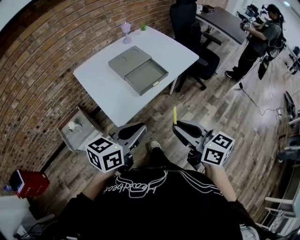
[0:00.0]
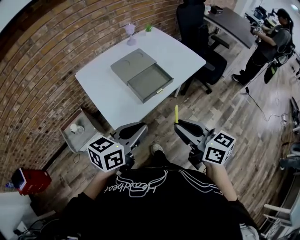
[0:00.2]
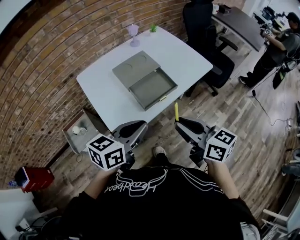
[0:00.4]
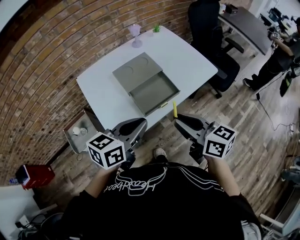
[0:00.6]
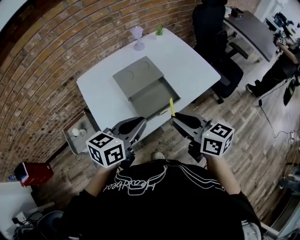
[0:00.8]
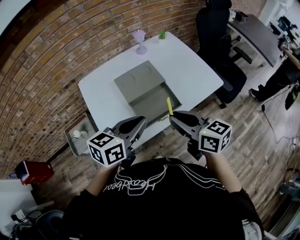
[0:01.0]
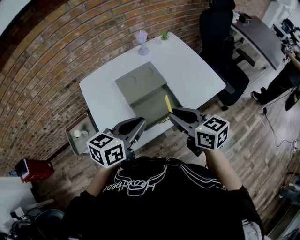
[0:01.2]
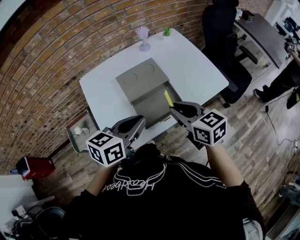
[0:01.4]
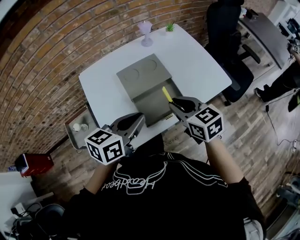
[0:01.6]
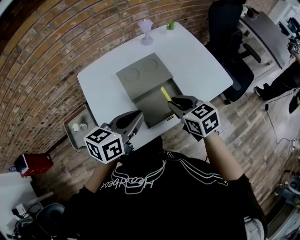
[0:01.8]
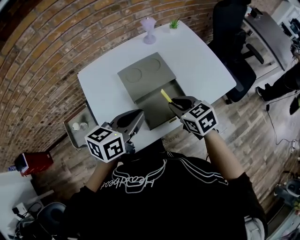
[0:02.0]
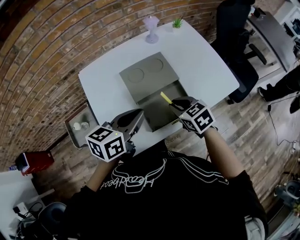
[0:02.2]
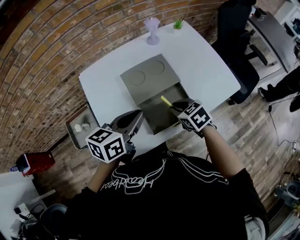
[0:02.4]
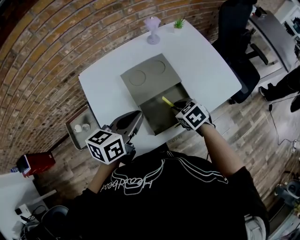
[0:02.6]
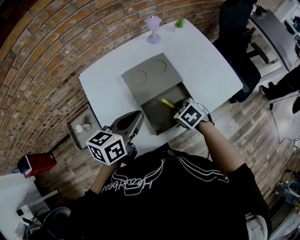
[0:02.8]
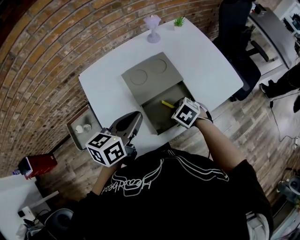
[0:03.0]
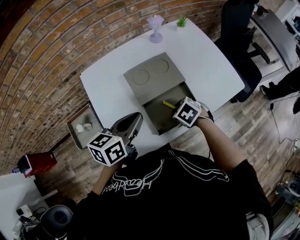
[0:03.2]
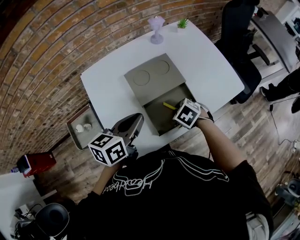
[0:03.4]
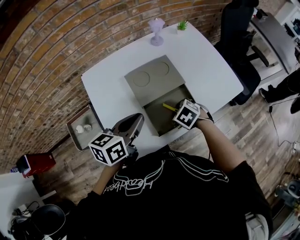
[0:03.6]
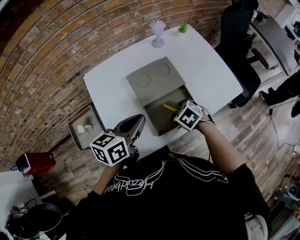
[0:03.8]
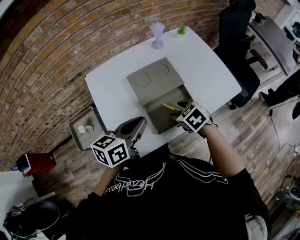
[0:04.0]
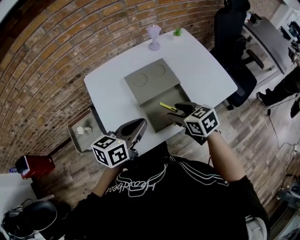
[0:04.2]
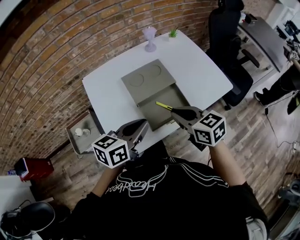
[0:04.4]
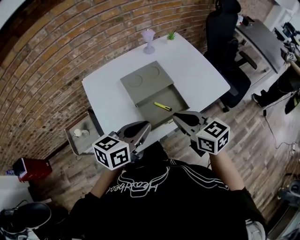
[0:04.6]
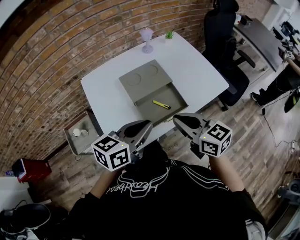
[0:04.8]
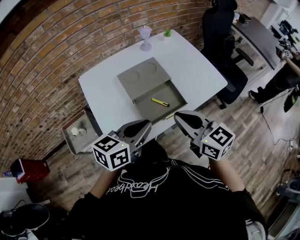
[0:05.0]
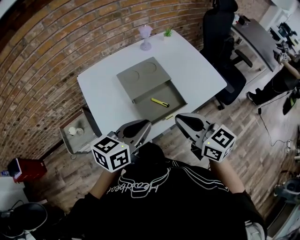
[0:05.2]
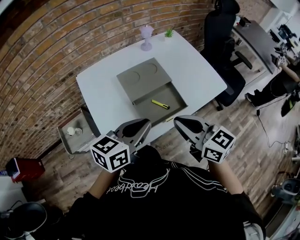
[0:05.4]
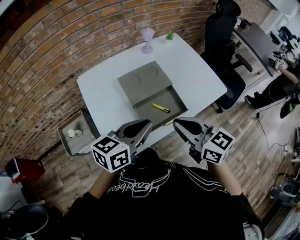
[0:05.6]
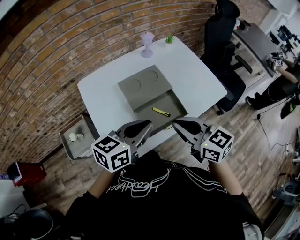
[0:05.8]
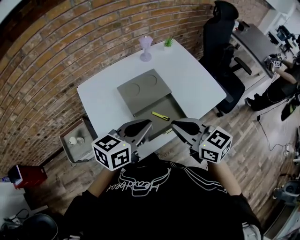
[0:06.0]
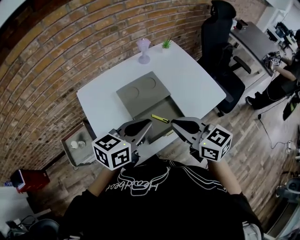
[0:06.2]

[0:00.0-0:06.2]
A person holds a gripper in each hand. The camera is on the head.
0:00.0 to 0:01.6: The two grippers go roughly 30 cm forward. The right gripper changes its angle by some 30 degrees.
0:01.6 to 0:03.2: The right gripper goes some 20 cm downward, and tips its fingers downward by roughly 40 degrees; the left gripper goes some 10 cm forward and to the left.
0:03.2 to 0:04.6: The left gripper travels backward and to the right by some 10 cm; the right gripper goes approximately 20 cm upward and backward, points its fingers some 50 degrees further upward, and opens and closes again.
0:04.6 to 0:06.2: The left gripper shifts roughly 5 cm forward.

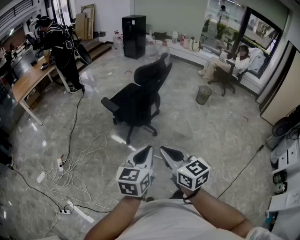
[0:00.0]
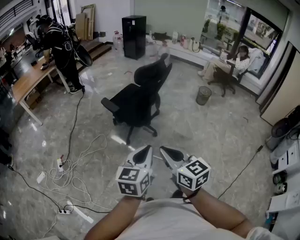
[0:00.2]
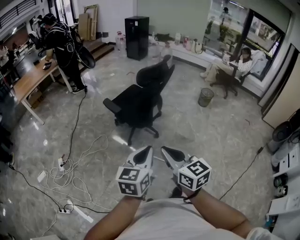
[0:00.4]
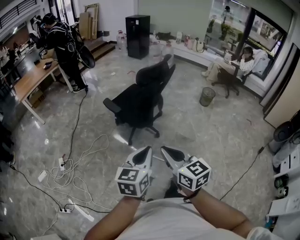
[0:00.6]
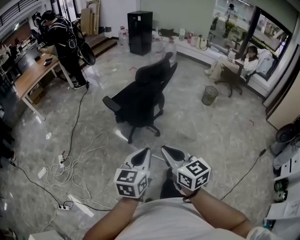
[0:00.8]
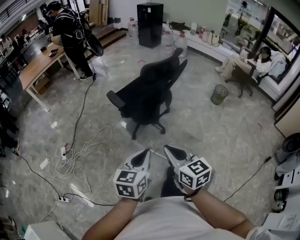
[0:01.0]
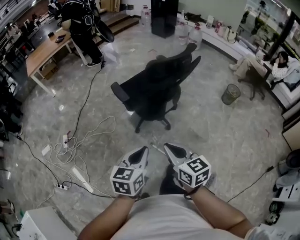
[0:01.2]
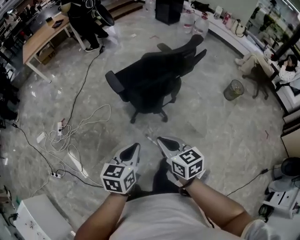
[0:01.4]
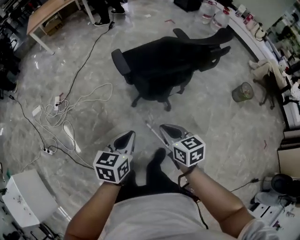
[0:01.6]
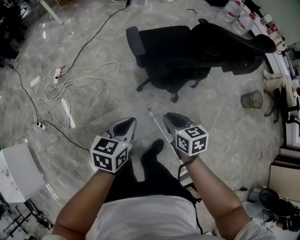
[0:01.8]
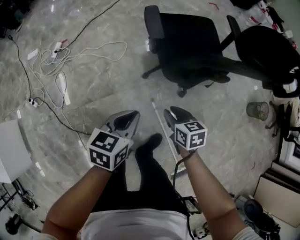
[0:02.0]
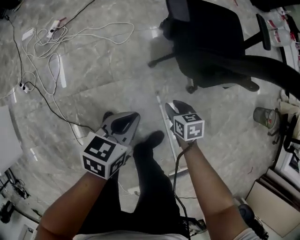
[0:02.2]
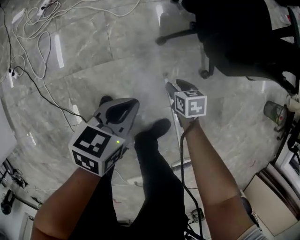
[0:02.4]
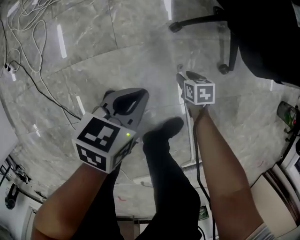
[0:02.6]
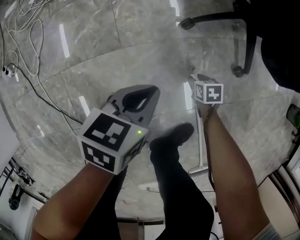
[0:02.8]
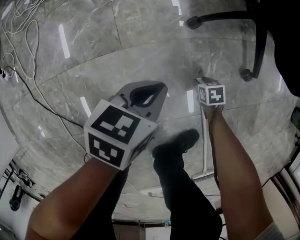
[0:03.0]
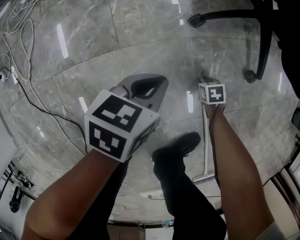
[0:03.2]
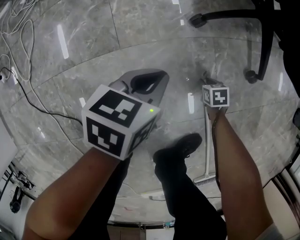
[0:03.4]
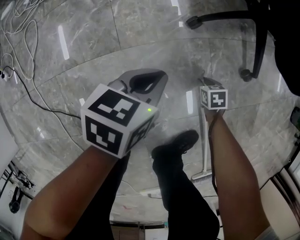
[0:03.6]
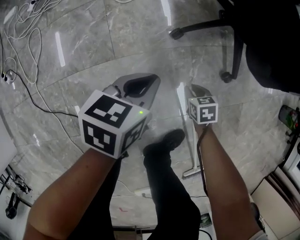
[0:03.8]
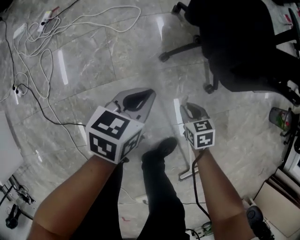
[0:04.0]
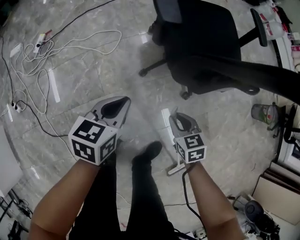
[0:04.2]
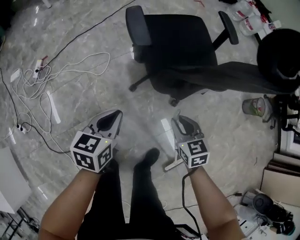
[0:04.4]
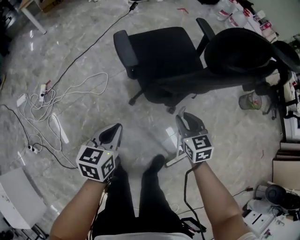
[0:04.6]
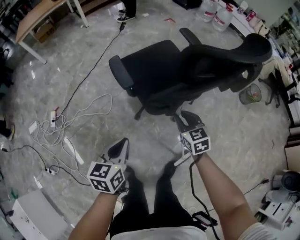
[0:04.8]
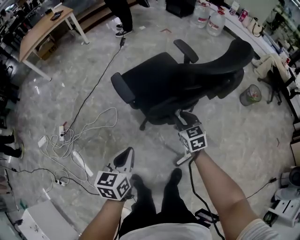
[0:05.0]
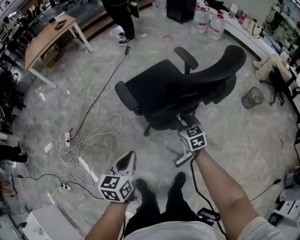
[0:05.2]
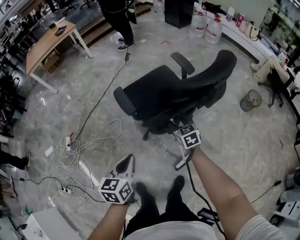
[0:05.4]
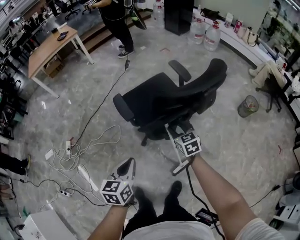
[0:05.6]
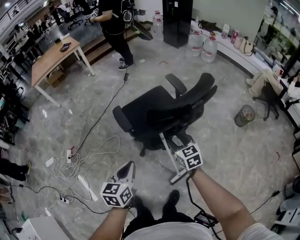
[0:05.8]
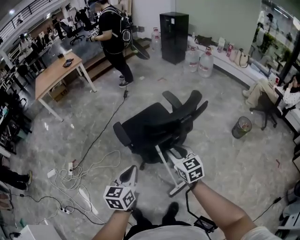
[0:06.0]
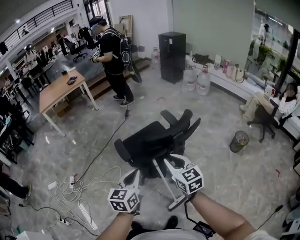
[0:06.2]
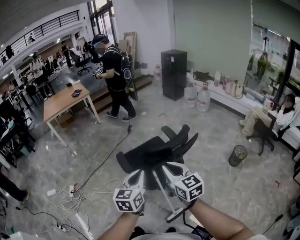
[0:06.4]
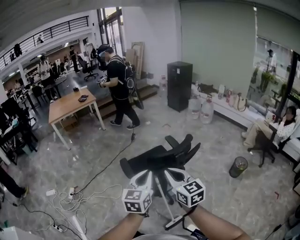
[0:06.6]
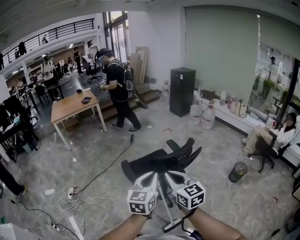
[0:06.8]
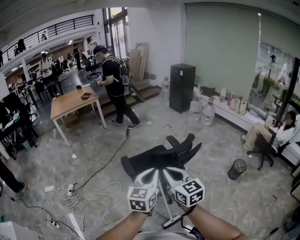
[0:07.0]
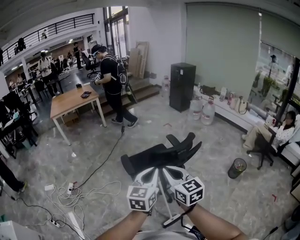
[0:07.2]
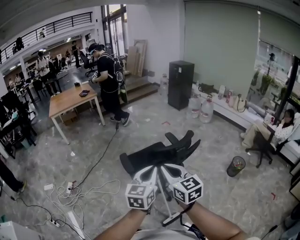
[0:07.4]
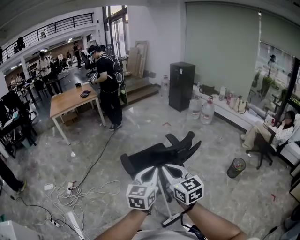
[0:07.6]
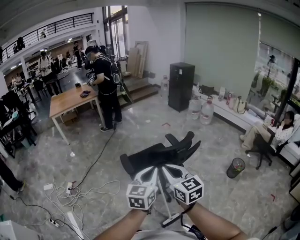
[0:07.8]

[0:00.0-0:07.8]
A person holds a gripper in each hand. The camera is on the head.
0:00.0 to 0:01.6: The grippers both shift forward and downward by about 40 cm. The left gripper changes its angle by approximately 30 degrees, while the right gripper changes its angle by roughly 30 degrees.
0:01.6 to 0:03.2: Both grippers move downward, approximately 90 cm. The right gripper tips its fingers downward by roughly 50 degrees, and opens up. Meanwhile the left gripper turns by roughly 20 degrees.
0:03.2 to 0:04.6: The grippers both shift upward by some 70 cm. The right gripper tilts its fingers approximately 40 degrees upward. Meanwhile the left gripper rotates some 20 degrees.
0:04.6 to 0:06.2: The right gripper moves upward, approximately 40 cm, turns by some 20 degrees, and opens, then closes once more, while the left gripper is displaced upward and to the right by roughly 40 cm, and changes its angle by some 20 degrees.
0:06.2 to 0:07.8: The left gripper shifts roughly 15 cm upward and to the right. The right gripper goes some 15 cm upward and backward.

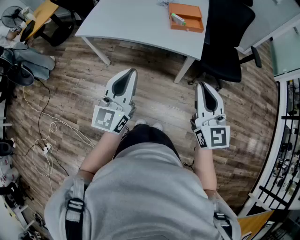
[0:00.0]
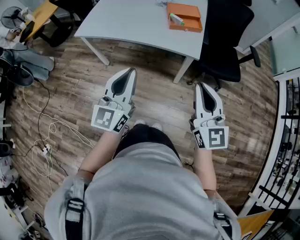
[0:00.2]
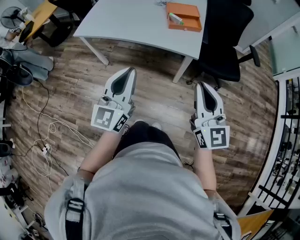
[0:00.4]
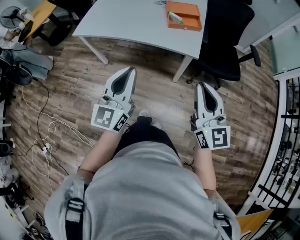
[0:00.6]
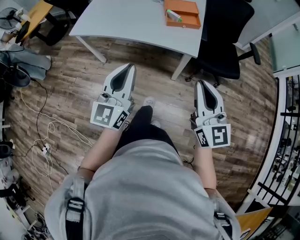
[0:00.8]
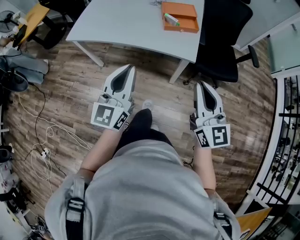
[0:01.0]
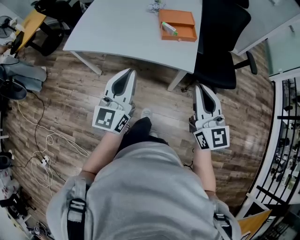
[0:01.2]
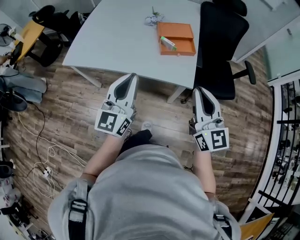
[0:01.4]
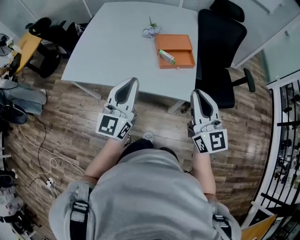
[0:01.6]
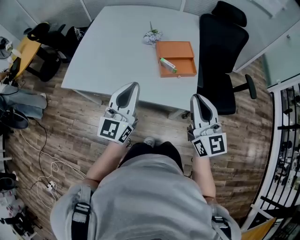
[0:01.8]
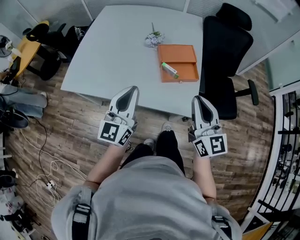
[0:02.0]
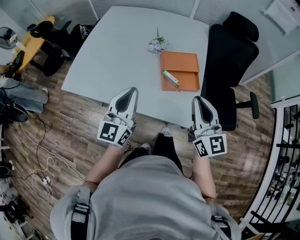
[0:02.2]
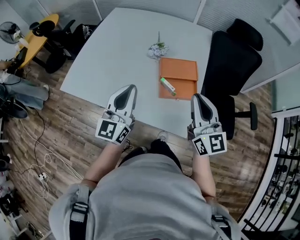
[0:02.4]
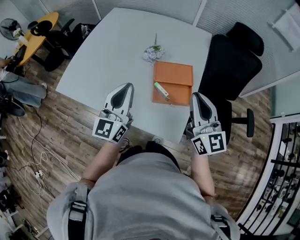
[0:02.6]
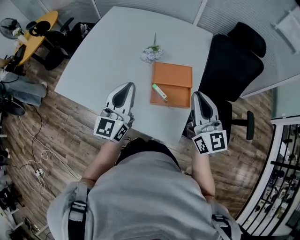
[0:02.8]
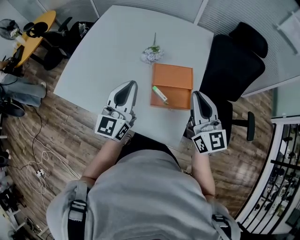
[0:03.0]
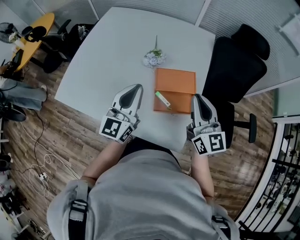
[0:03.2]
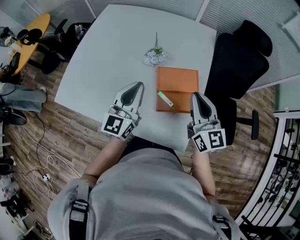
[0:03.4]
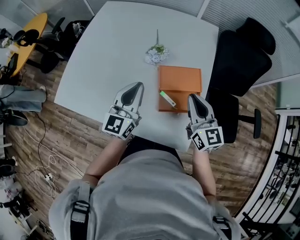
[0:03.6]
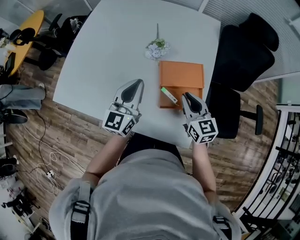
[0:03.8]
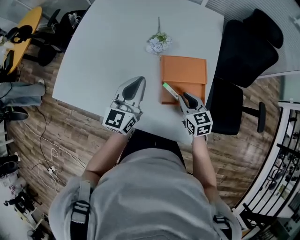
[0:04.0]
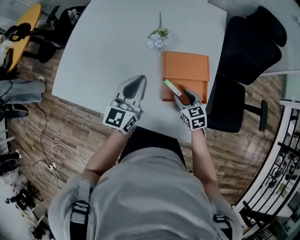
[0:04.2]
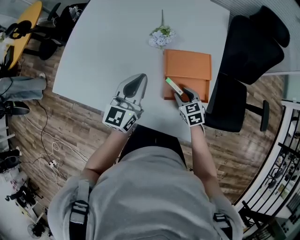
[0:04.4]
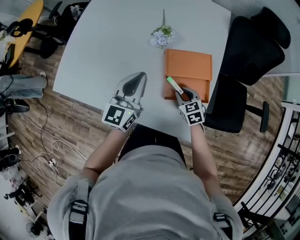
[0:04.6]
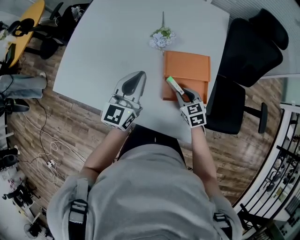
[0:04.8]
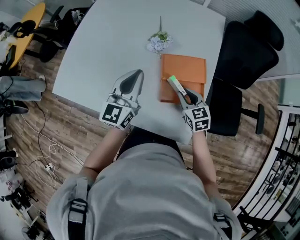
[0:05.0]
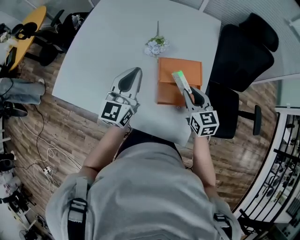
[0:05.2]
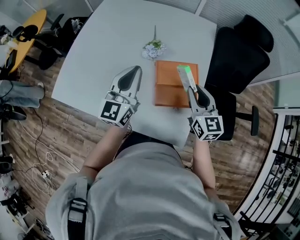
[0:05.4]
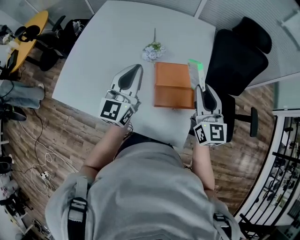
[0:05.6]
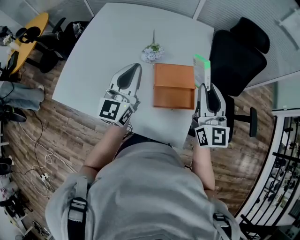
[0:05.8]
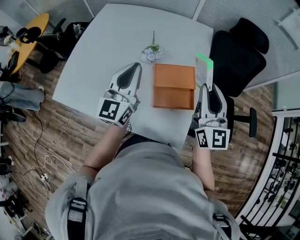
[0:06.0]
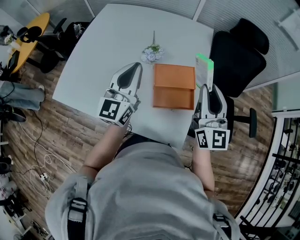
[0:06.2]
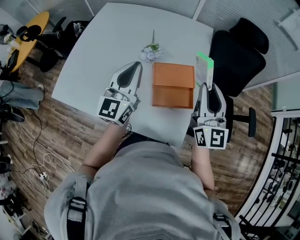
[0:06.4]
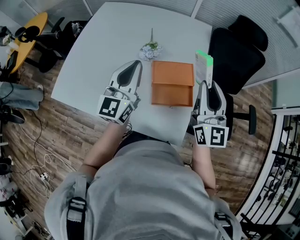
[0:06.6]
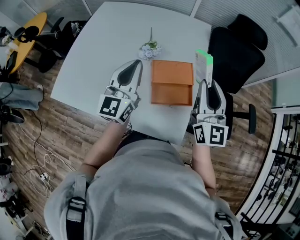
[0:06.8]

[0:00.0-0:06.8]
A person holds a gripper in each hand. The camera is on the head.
0:00.0 to 0:01.4: The grippers both shift forward by some 20 cm.
0:01.4 to 0:02.8: The two grippers go some 35 cm forward.
0:02.8 to 0:04.0: The left gripper is displaced forward and downward by some 15 cm; the right gripper shifts about 25 cm downward, and tilts its fingers approximately 40 degrees downward.
0:04.0 to 0:05.4: The right gripper travels upward by roughly 15 cm, and changes its angle by some 20 degrees. Meanwhile the left gripper is displaced upward by roughly 10 cm.
0:05.4 to 0:06.8: The right gripper shifts some 10 cm upward, and swivels some 30 degrees.

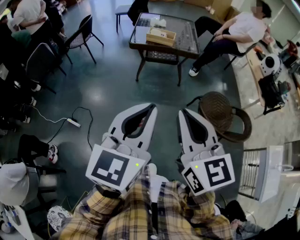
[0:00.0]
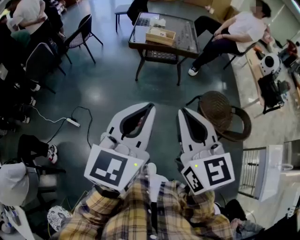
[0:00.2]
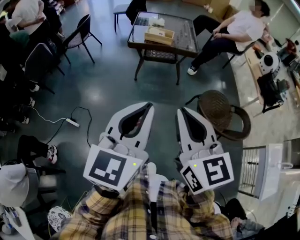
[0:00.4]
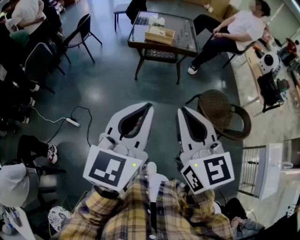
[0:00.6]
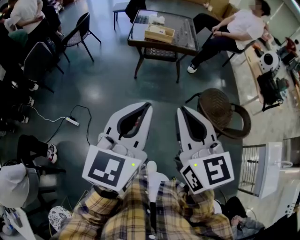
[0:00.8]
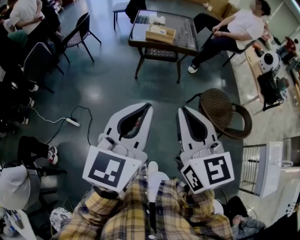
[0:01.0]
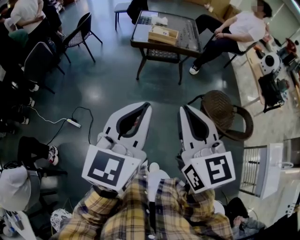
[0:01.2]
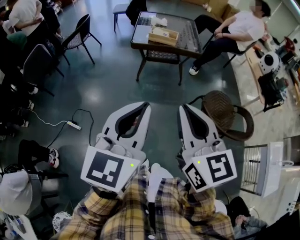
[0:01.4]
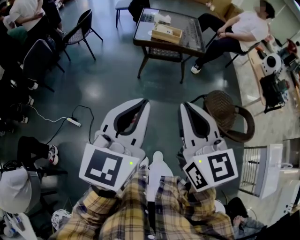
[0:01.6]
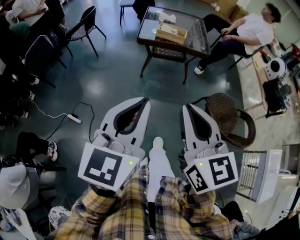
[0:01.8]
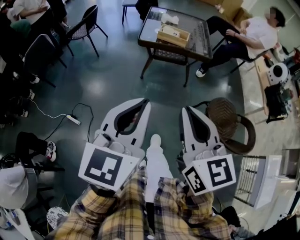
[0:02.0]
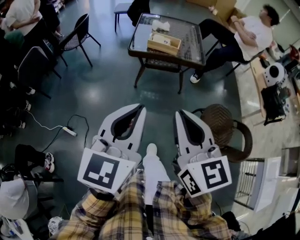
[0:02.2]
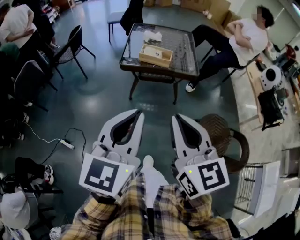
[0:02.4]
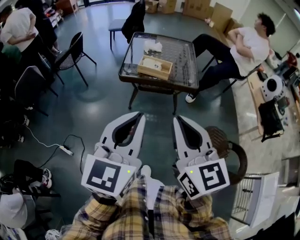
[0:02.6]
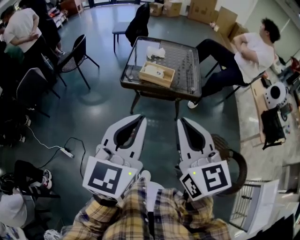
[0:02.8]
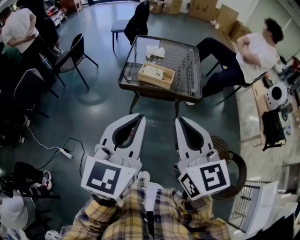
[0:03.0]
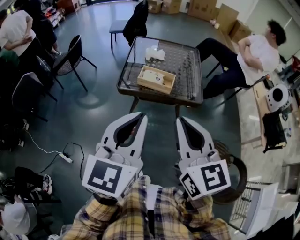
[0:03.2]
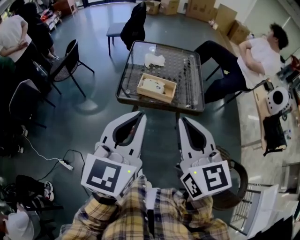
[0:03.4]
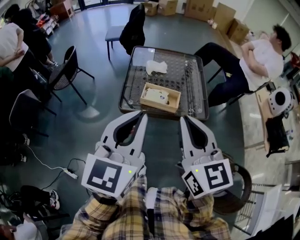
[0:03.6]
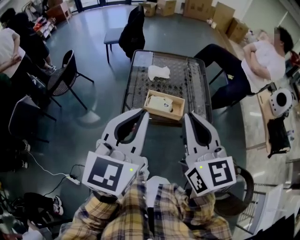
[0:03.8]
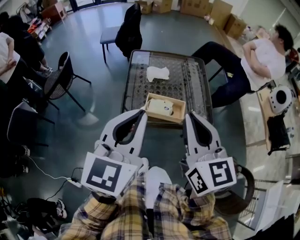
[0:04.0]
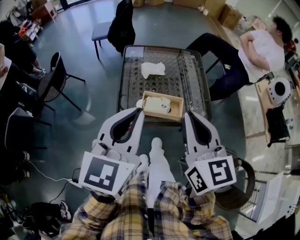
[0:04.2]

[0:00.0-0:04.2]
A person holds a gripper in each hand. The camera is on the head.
0:00.0 to 0:01.4: The two grippers go roughly 5 cm to the left.
0:01.4 to 0:02.8: Both grippers move forward, about 25 cm.
0:02.8 to 0:04.2: Both grippers move forward, some 30 cm.
